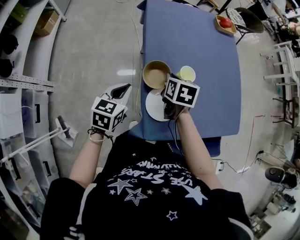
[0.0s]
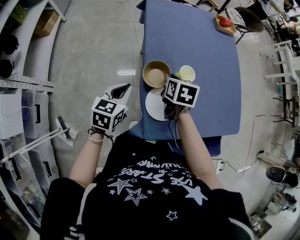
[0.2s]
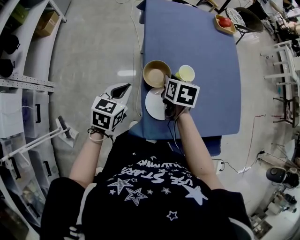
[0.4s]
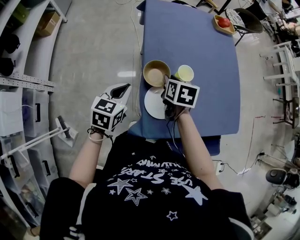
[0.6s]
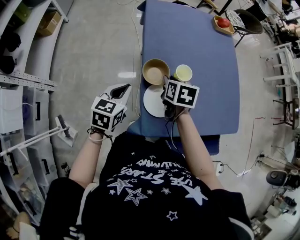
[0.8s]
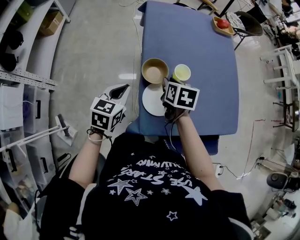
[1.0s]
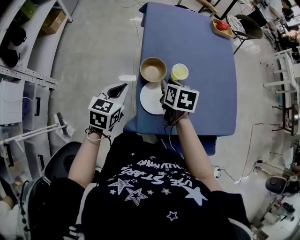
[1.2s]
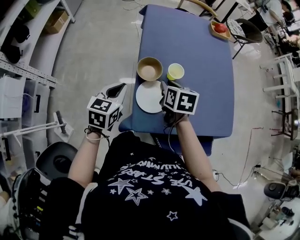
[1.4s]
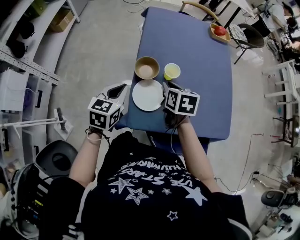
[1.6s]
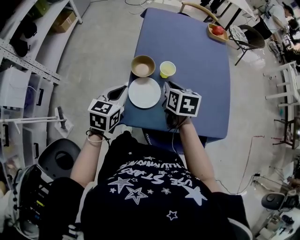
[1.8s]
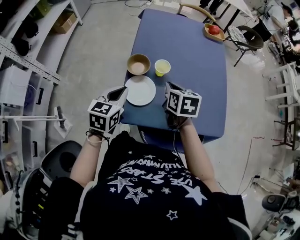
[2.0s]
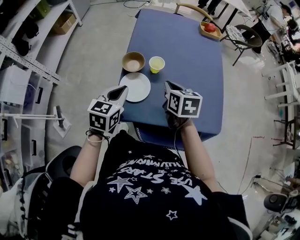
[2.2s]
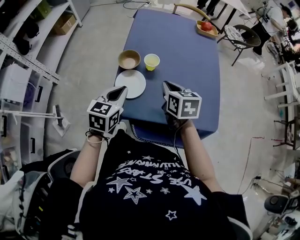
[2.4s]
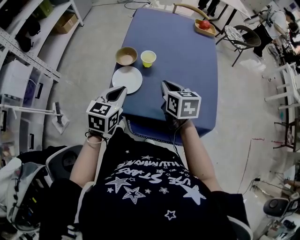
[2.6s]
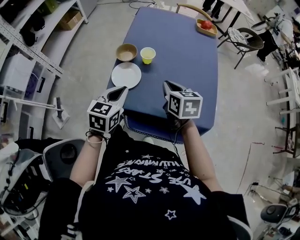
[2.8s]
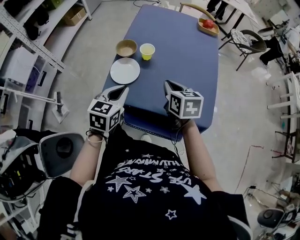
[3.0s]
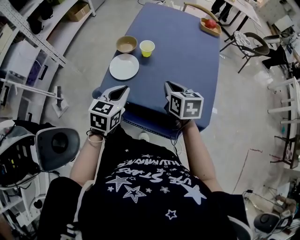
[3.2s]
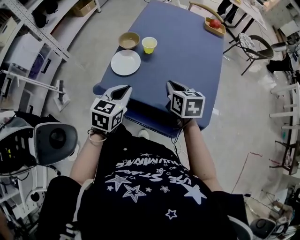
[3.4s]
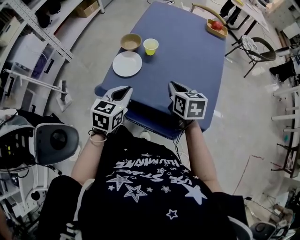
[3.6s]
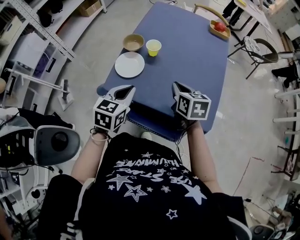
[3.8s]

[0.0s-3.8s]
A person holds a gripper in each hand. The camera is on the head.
0.0s to 1.2s: The right gripper goes approximately 5 cm backward.
1.2s to 2.6s: The right gripper is displaced to the right, backward and upward by about 20 cm, and changes its angle by some 20 degrees, while the left gripper travels to the right and backward by approximately 20 cm.
2.6s to 3.8s: The right gripper moves to the right, some 5 cm, while the left gripper moves to the right and backward, roughly 10 cm.

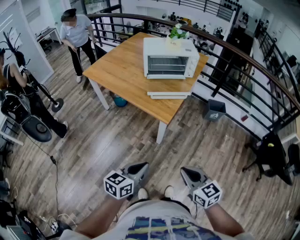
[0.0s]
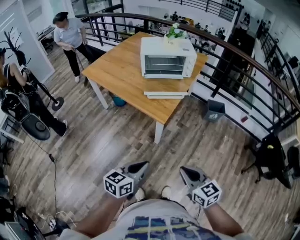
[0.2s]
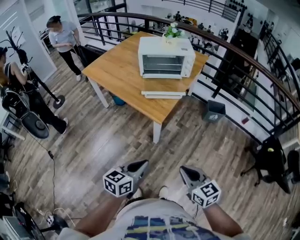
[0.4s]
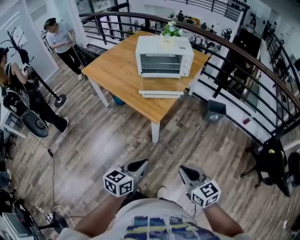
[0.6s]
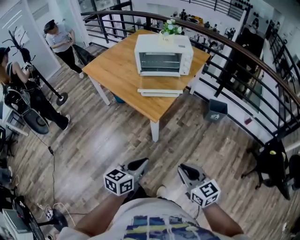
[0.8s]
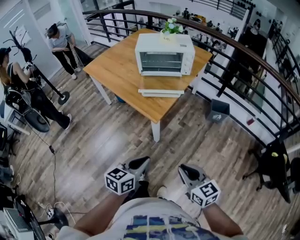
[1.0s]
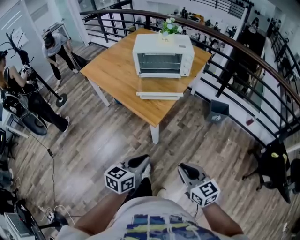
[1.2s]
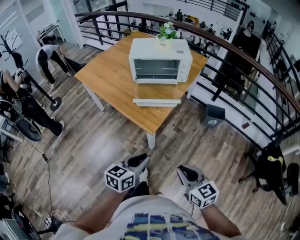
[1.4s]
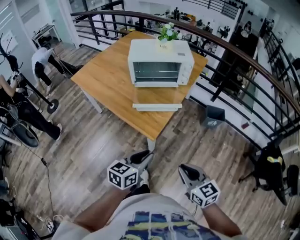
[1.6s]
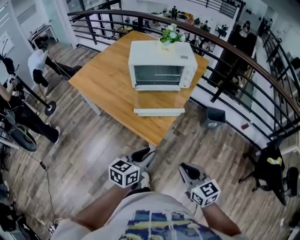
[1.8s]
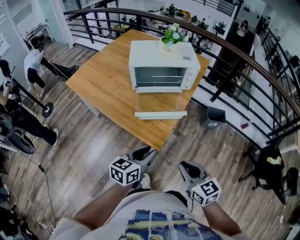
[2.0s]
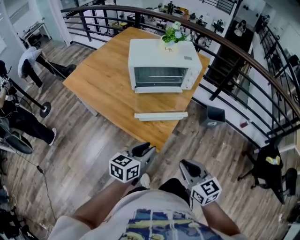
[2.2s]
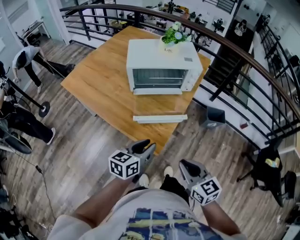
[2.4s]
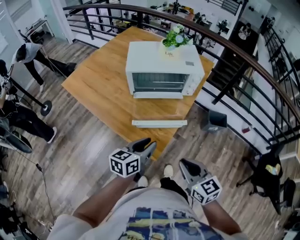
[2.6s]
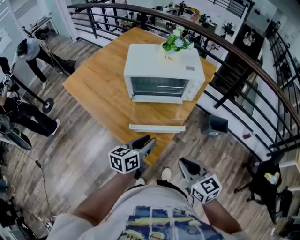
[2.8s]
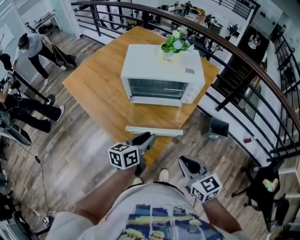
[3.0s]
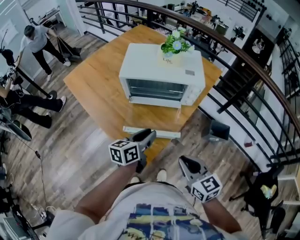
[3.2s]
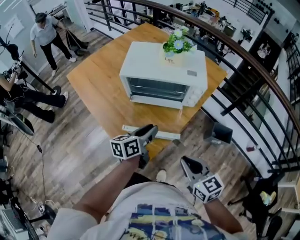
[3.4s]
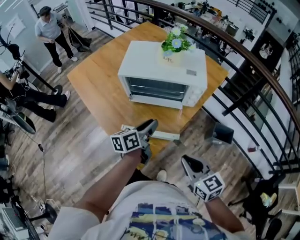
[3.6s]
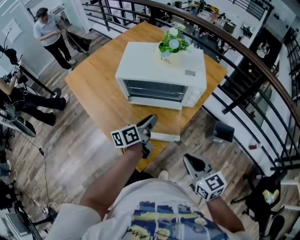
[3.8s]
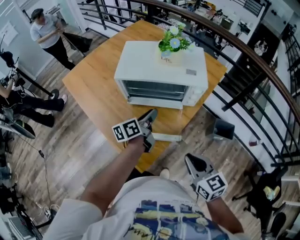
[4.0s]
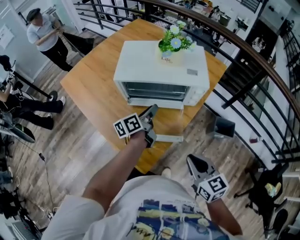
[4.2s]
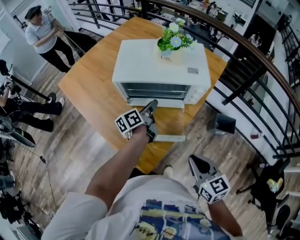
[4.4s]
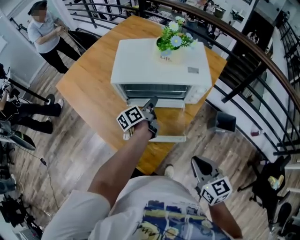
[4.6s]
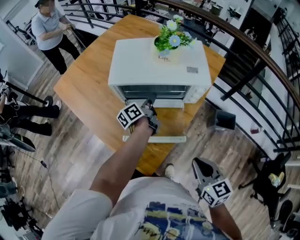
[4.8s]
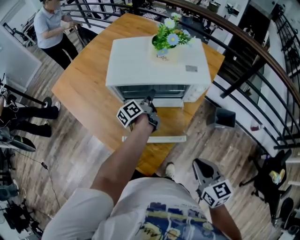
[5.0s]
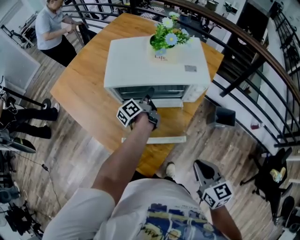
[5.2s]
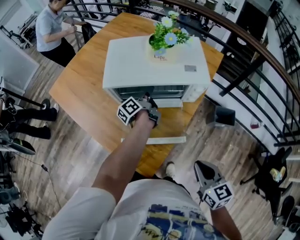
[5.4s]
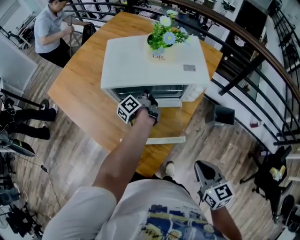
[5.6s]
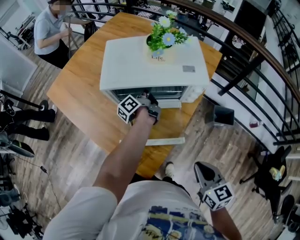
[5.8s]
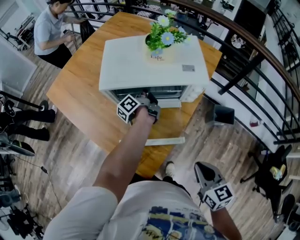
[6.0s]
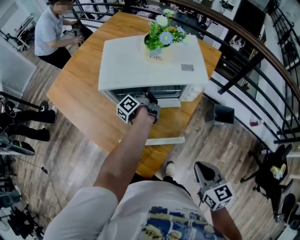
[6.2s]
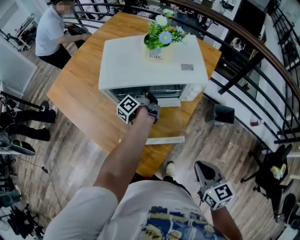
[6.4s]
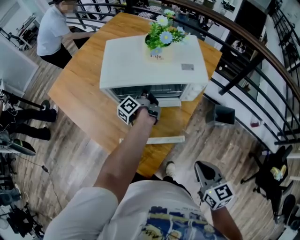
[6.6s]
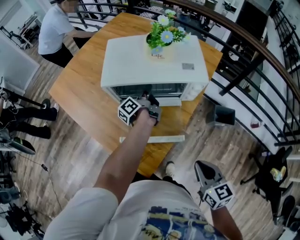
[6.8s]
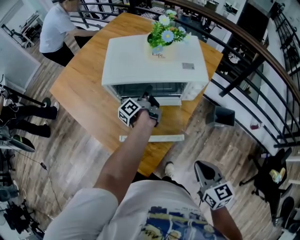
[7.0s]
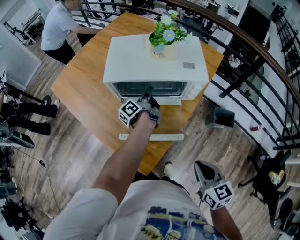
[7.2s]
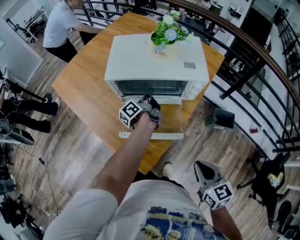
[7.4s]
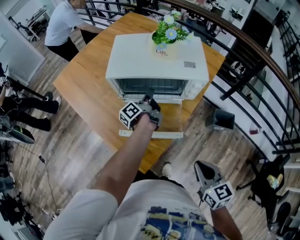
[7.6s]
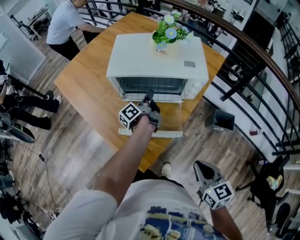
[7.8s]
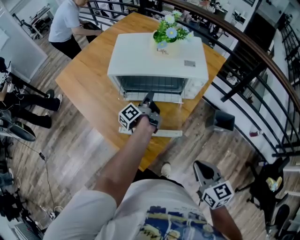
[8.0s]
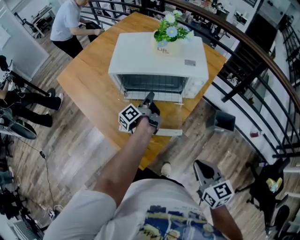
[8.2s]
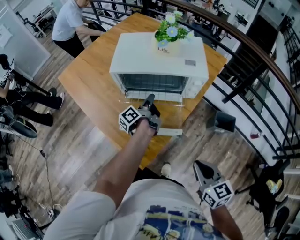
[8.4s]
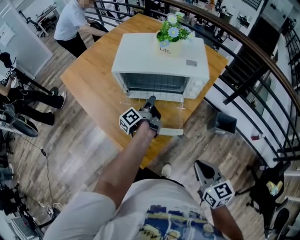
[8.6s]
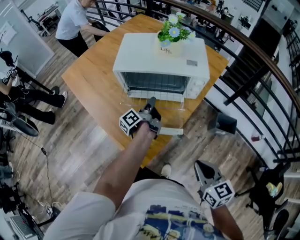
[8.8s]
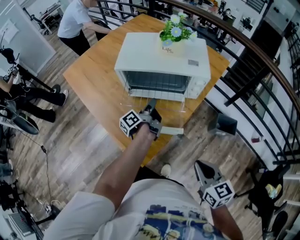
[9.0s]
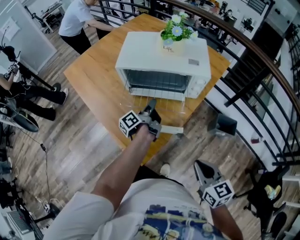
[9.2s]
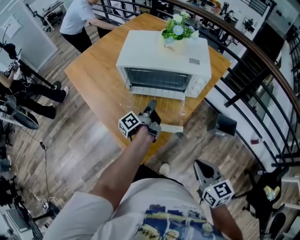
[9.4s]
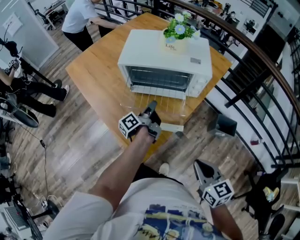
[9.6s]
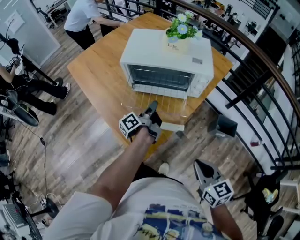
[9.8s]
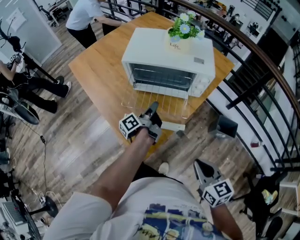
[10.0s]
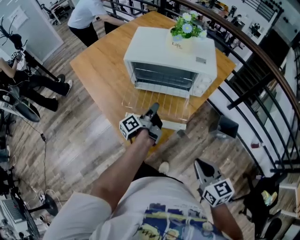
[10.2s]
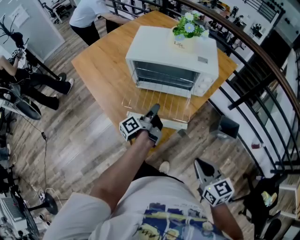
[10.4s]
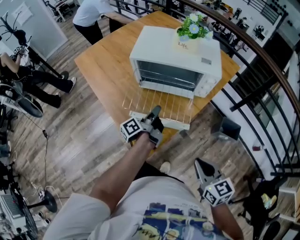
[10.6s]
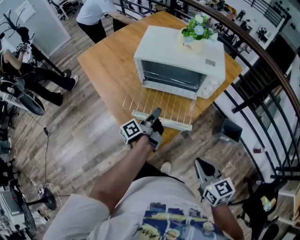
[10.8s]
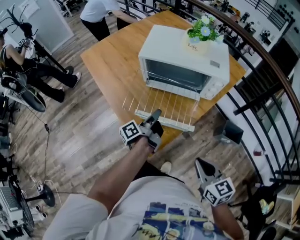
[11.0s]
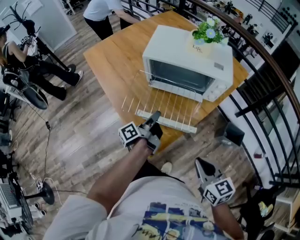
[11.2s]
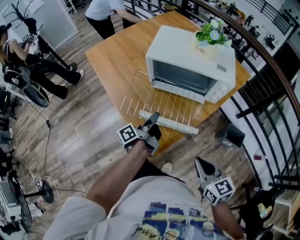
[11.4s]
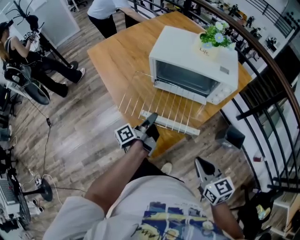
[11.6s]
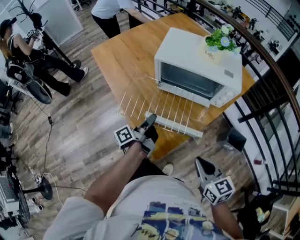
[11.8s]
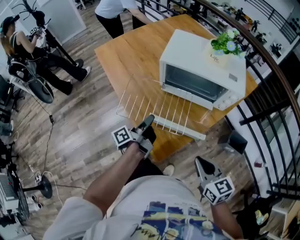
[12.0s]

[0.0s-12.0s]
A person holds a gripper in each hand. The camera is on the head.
0.0s to 1.6s: The right gripper moves about 20 cm.
1.6s to 3.0s: The right gripper changes place by roughly 25 cm.
3.0s to 4.4s: The right gripper shifts by about 10 cm.
10.4s to 12.0s: The right gripper changes place by some 10 cm.

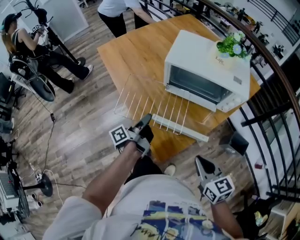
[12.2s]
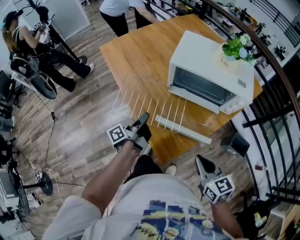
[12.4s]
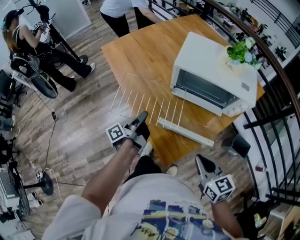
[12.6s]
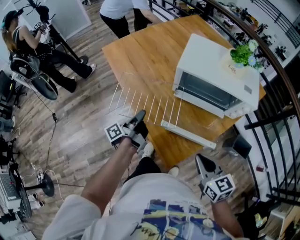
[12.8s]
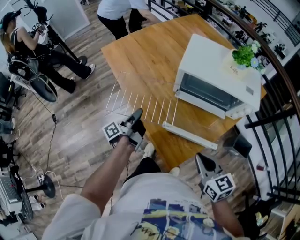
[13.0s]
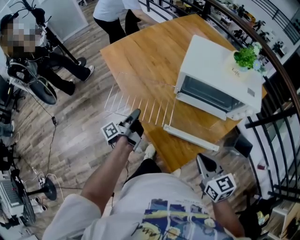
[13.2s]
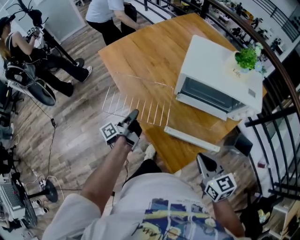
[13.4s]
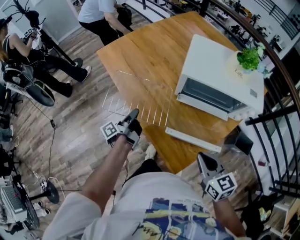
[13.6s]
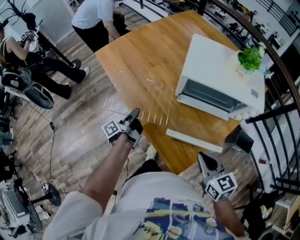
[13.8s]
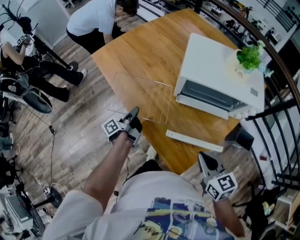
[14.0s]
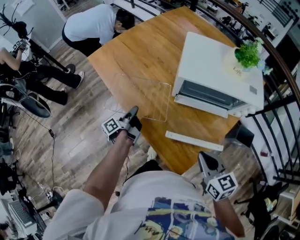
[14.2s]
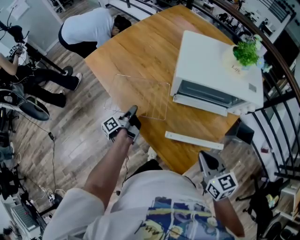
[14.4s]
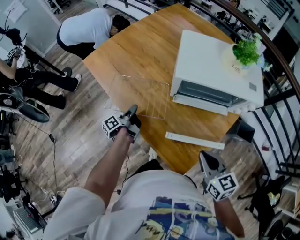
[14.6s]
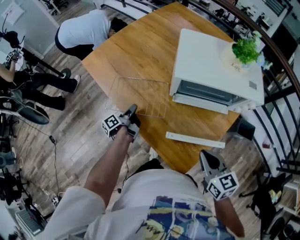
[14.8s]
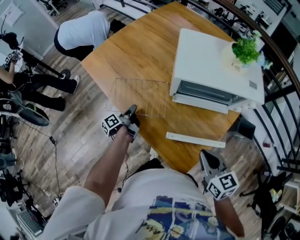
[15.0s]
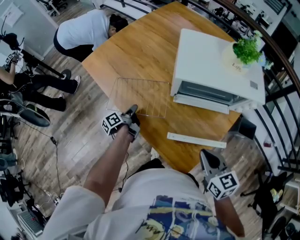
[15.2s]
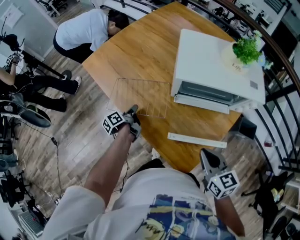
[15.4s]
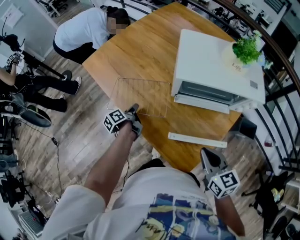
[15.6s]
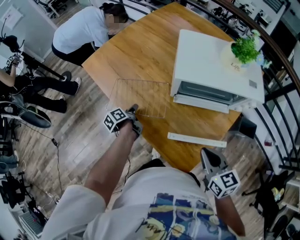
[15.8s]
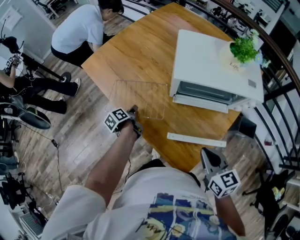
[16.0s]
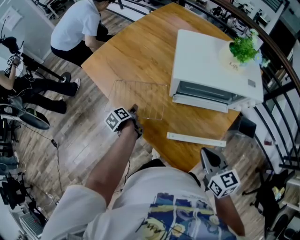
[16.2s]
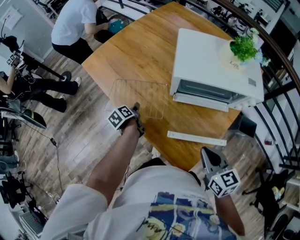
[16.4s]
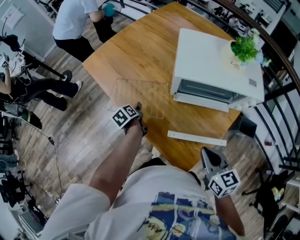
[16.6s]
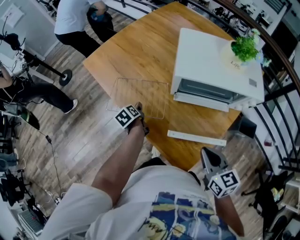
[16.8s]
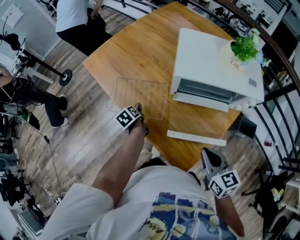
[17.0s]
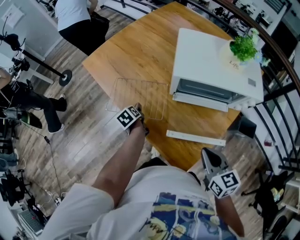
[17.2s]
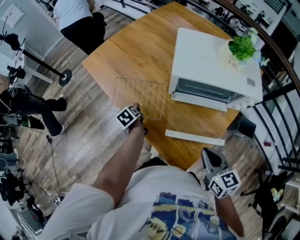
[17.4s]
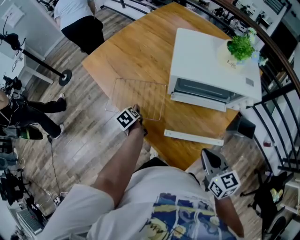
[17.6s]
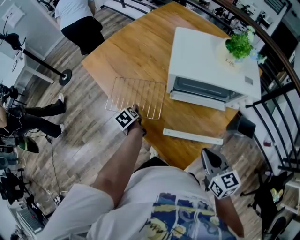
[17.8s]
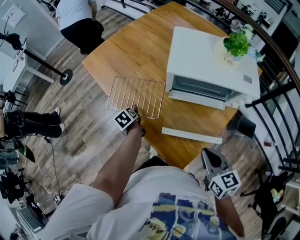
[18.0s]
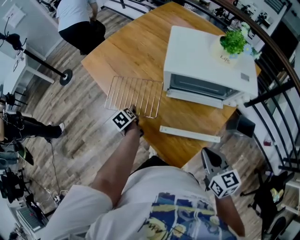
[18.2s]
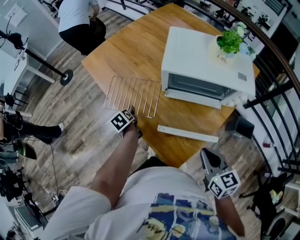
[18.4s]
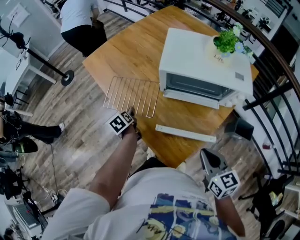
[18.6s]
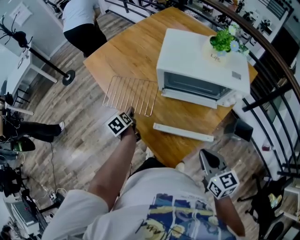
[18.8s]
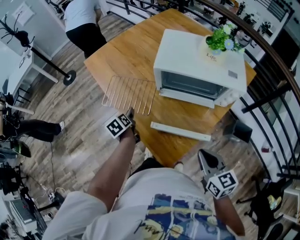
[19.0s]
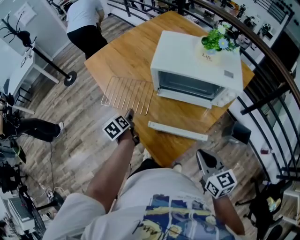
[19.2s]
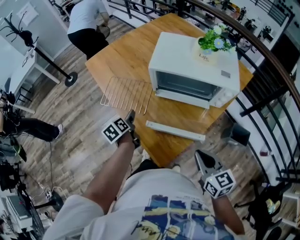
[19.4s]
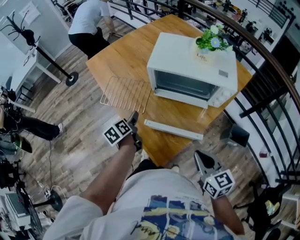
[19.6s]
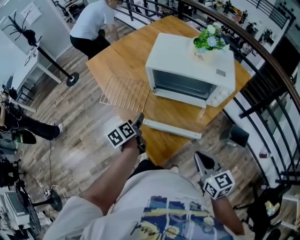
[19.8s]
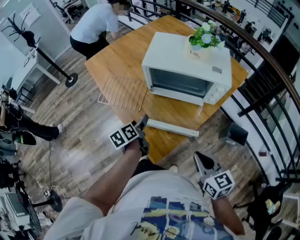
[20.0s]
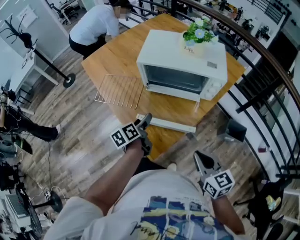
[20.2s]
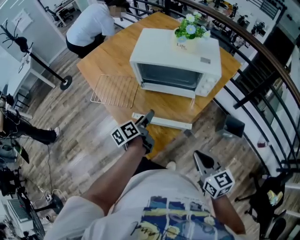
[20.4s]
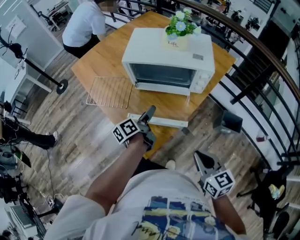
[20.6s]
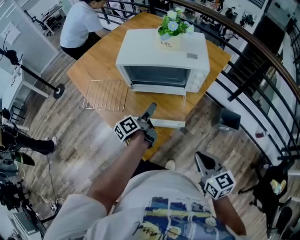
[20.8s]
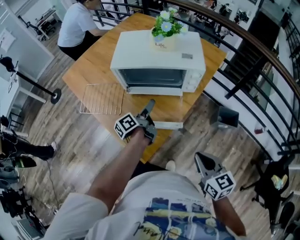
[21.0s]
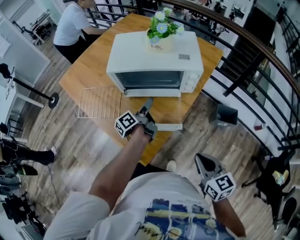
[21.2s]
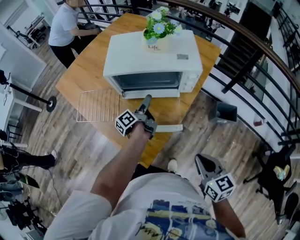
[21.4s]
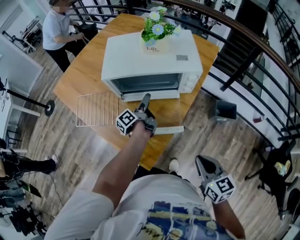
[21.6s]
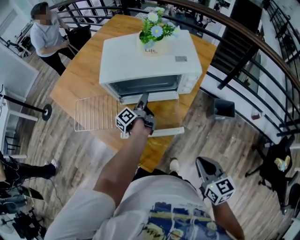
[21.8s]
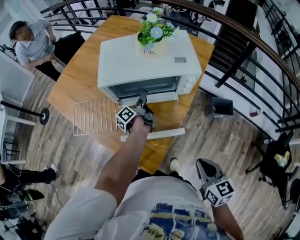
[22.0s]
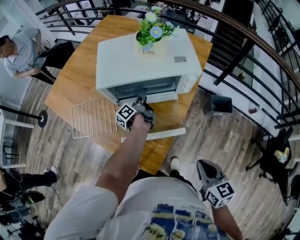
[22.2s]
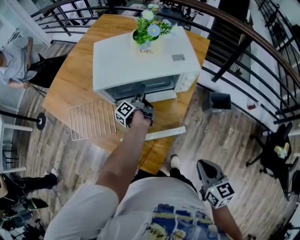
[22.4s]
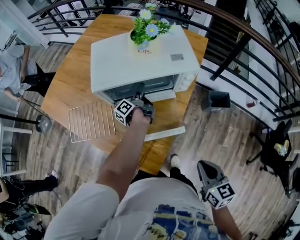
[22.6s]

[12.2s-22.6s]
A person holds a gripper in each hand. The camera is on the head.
12.2s to 13.6s: The right gripper ends up some 15 cm from where it was.
16.6s to 18.2s: The right gripper moves roughly 5 cm.
18.2s to 19.6s: The right gripper shifts by roughly 10 cm.
19.6s to 21.2s: The right gripper moves roughly 10 cm.
